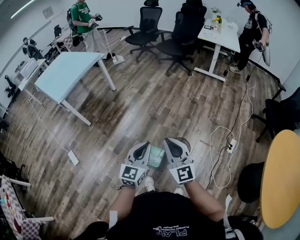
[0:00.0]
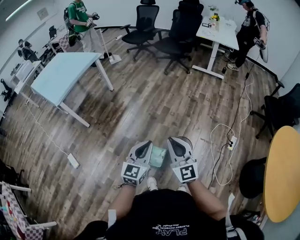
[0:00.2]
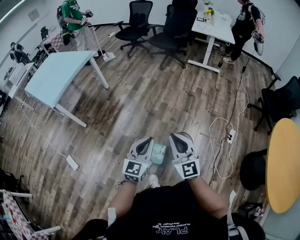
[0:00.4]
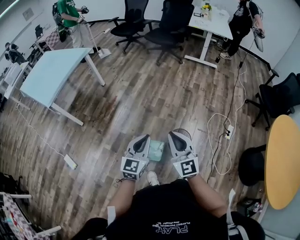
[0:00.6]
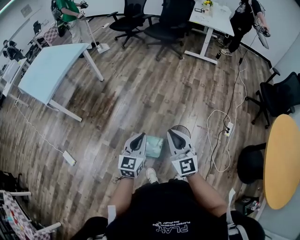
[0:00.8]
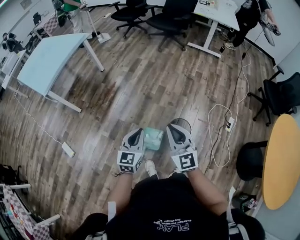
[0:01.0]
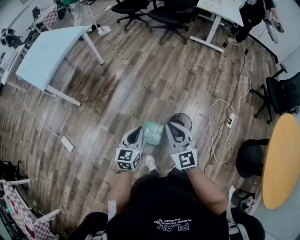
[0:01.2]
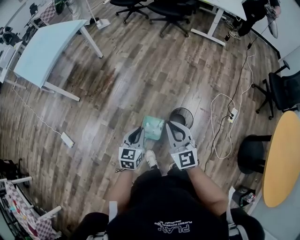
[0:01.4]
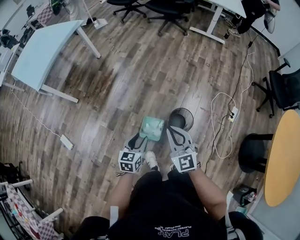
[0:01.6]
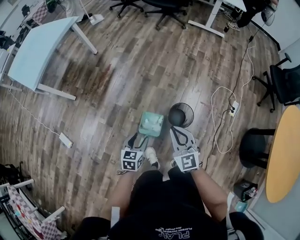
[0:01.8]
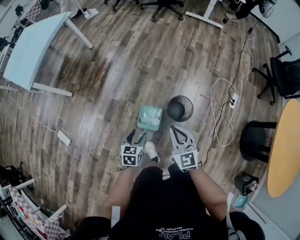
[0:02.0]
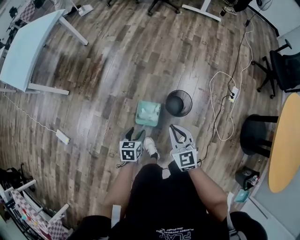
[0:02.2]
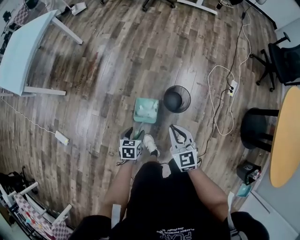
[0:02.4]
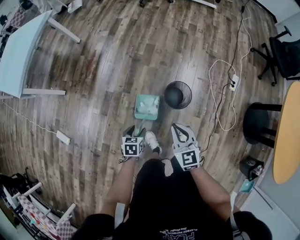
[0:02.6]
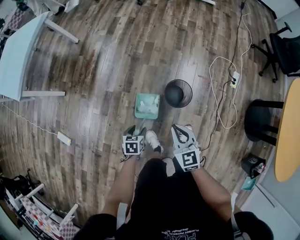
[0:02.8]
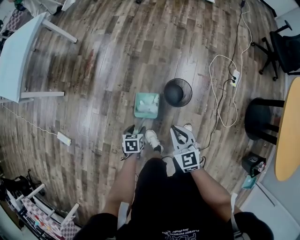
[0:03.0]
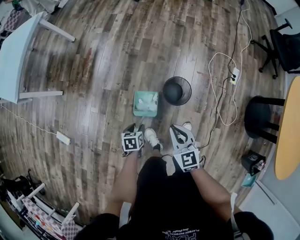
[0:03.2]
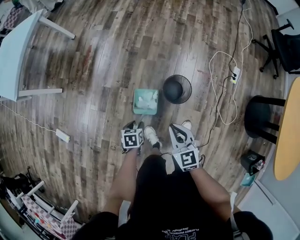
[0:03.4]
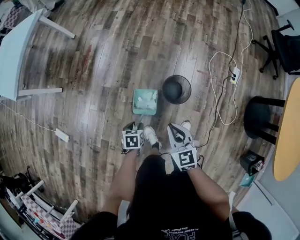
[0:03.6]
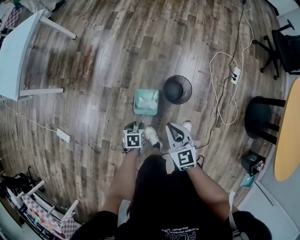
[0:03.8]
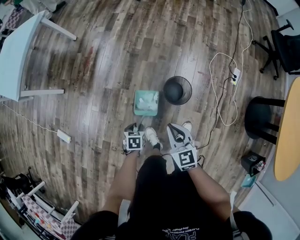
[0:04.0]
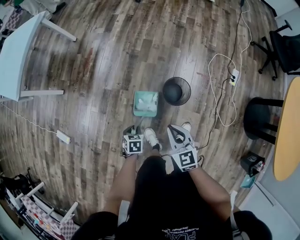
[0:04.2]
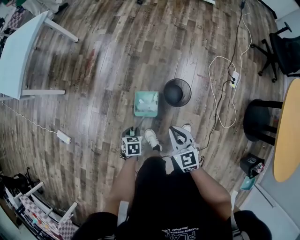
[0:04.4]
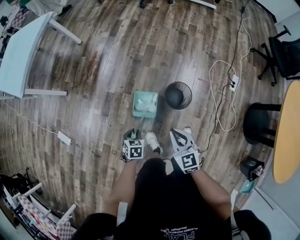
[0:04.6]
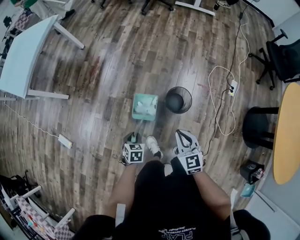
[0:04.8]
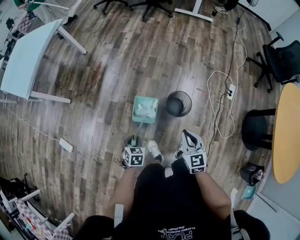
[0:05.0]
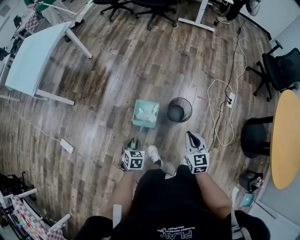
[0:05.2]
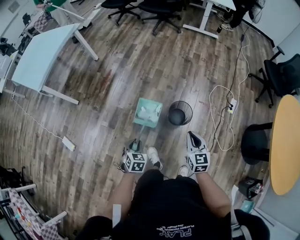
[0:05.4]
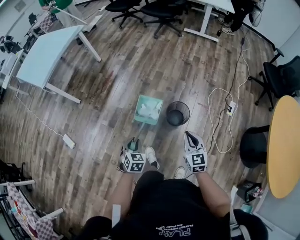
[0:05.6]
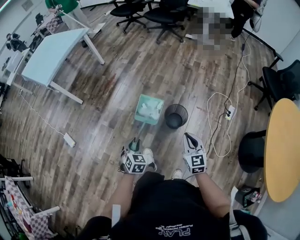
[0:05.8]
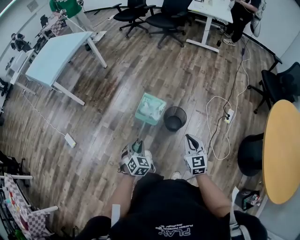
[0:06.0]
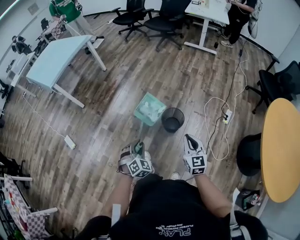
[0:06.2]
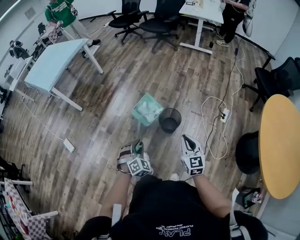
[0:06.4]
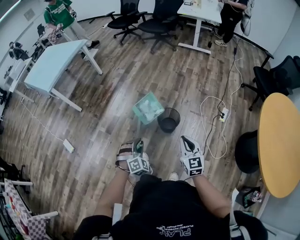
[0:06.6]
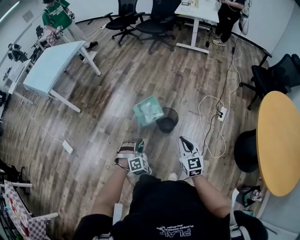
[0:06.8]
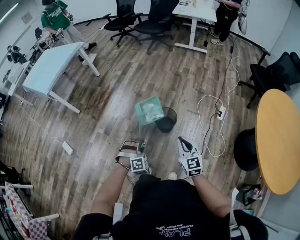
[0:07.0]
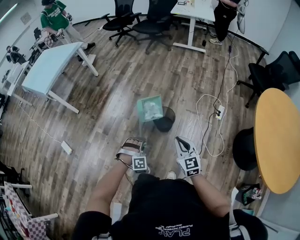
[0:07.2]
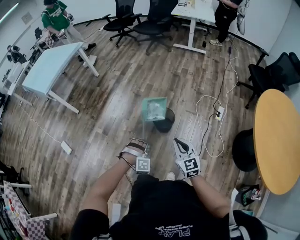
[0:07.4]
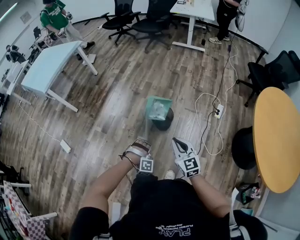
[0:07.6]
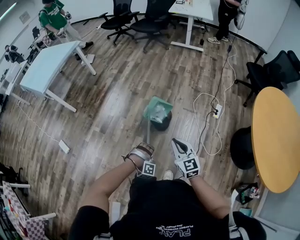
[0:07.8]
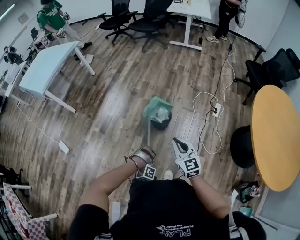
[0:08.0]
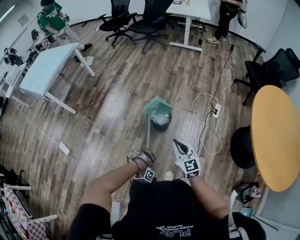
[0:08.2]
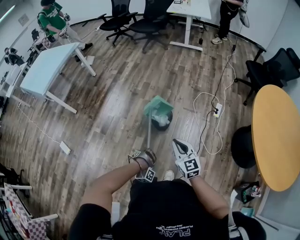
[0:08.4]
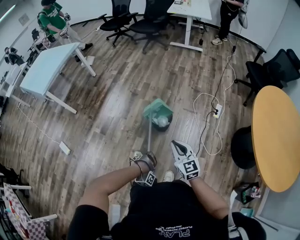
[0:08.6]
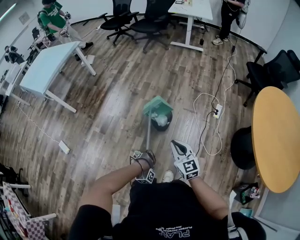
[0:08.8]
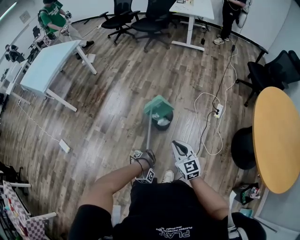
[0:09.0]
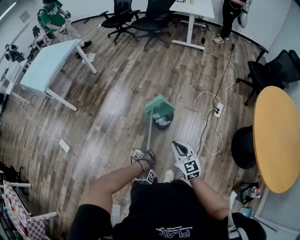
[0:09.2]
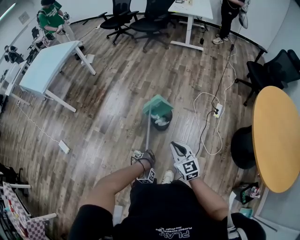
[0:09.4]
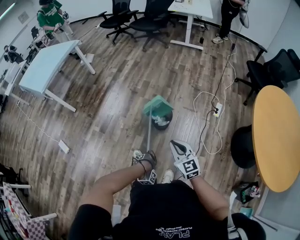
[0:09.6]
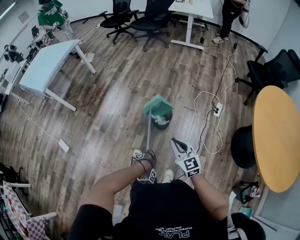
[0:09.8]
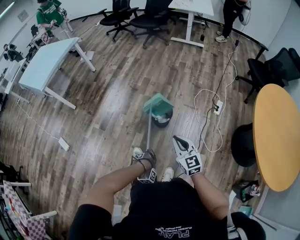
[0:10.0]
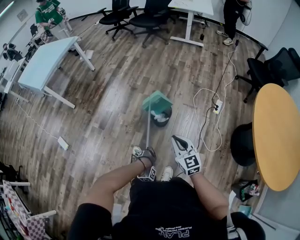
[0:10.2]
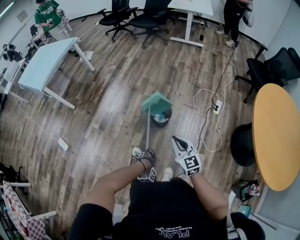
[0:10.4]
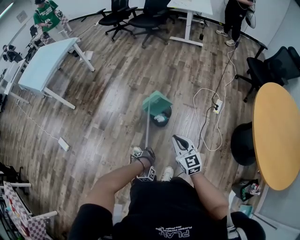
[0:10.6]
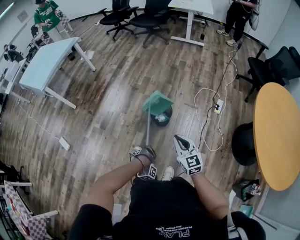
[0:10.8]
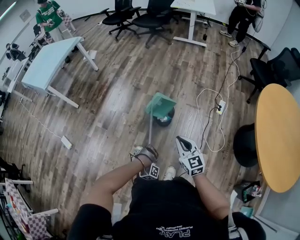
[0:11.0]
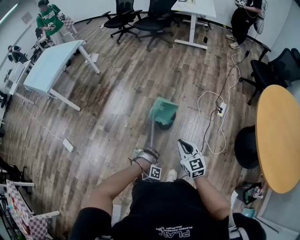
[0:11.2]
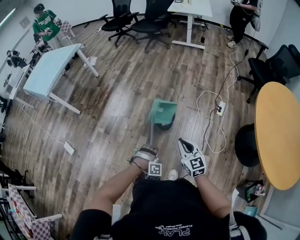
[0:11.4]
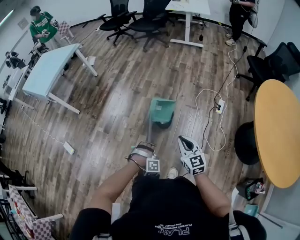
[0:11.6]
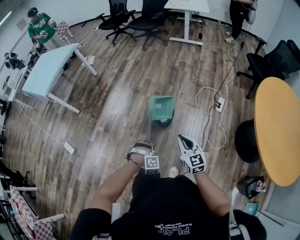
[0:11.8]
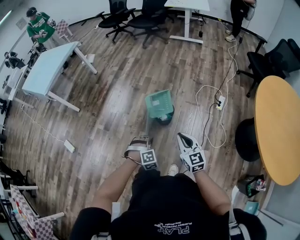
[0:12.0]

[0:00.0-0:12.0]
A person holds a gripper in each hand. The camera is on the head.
0:00.0 to 0:01.6: The left gripper heads downward and to the left, covering roughly 25 cm, turns by approximately 30 degrees, and opens up; the right gripper goes some 15 cm downward and forward, and turns by about 20 degrees.
0:01.6 to 0:03.0: The two grippers go approximately 20 cm downward. The left gripper points its fingers approximately 30 degrees further downward. Meanwhile the right gripper rotates approximately 30 degrees.
0:03.0 to 0:04.4: The left gripper closes.
0:04.4 to 0:06.0: The left gripper travels upward and backward by about 25 cm, and turns by about 40 degrees; the right gripper shifts about 20 cm backward, to the right and upward.
0:06.0 to 0:07.6: The right gripper travels backward by roughly 10 cm, while the left gripper travels to the right, backward and downward by about 15 cm, and rolls clockwise, seen from behind, by approximately 80 degrees.
0:07.6 to 0:09.0: The left gripper shifts roughly 10 cm downward and backward, and twists approximately 40 degrees clockwise, seen from behind.
0:09.0 to 0:10.4: The grippers stay close to where they were, moving slightly.
0:10.4 to 0:12.0: The left gripper moves upward, to the right and forward, roughly 15 cm, rolls counterclockwise, seen from behind, by roughly 70 degrees, and closes up.

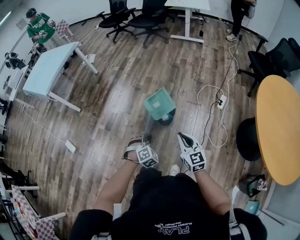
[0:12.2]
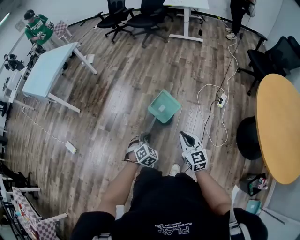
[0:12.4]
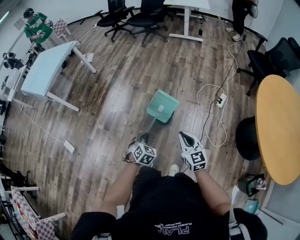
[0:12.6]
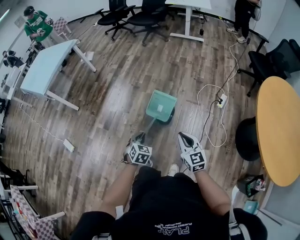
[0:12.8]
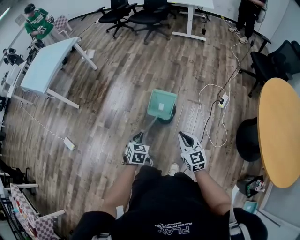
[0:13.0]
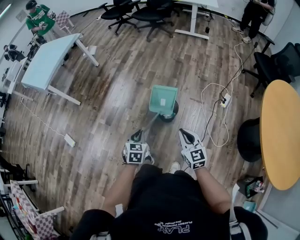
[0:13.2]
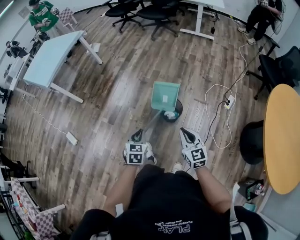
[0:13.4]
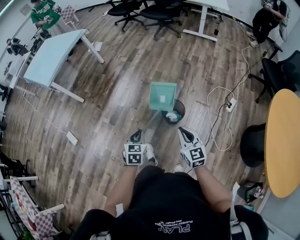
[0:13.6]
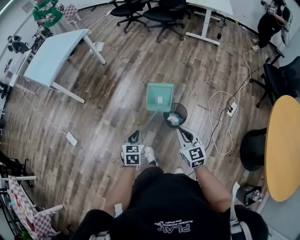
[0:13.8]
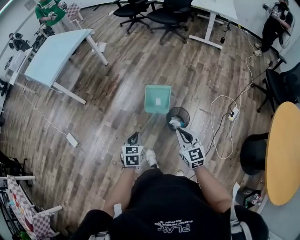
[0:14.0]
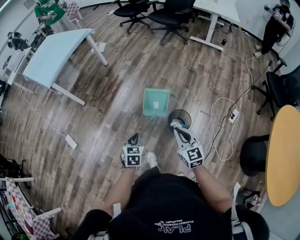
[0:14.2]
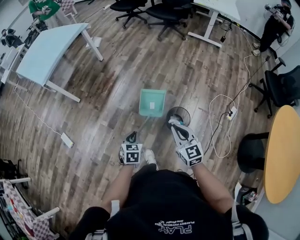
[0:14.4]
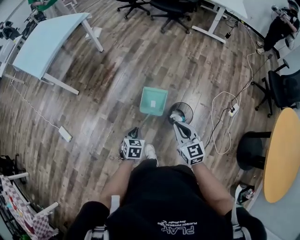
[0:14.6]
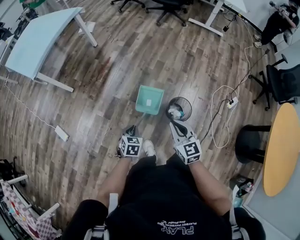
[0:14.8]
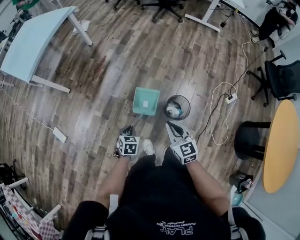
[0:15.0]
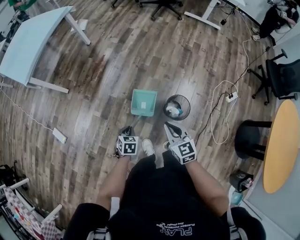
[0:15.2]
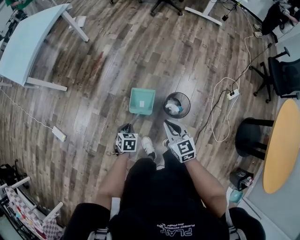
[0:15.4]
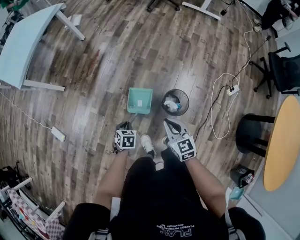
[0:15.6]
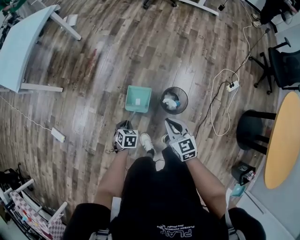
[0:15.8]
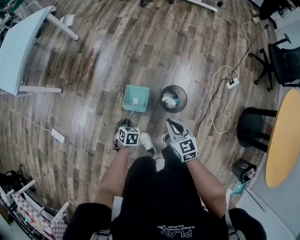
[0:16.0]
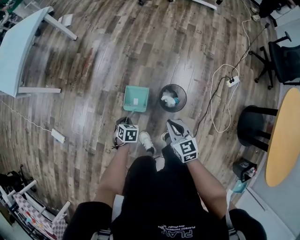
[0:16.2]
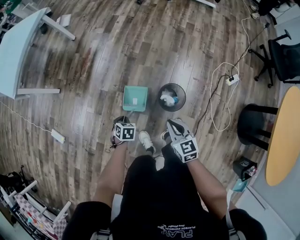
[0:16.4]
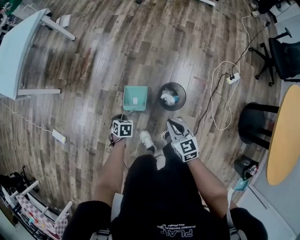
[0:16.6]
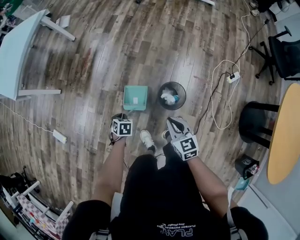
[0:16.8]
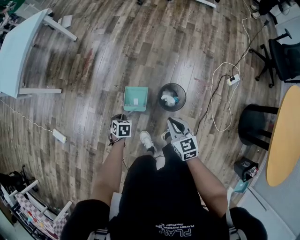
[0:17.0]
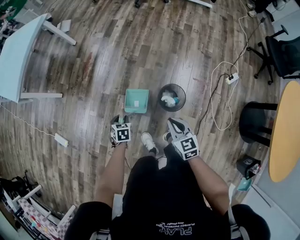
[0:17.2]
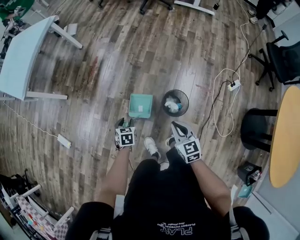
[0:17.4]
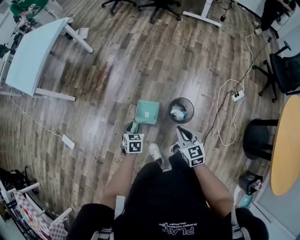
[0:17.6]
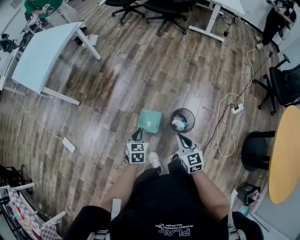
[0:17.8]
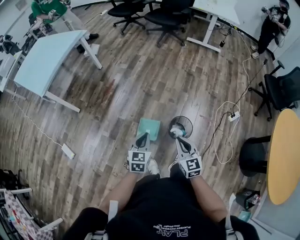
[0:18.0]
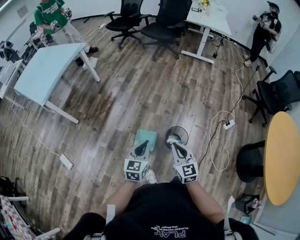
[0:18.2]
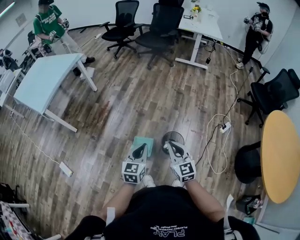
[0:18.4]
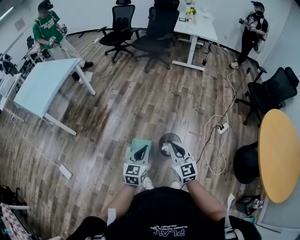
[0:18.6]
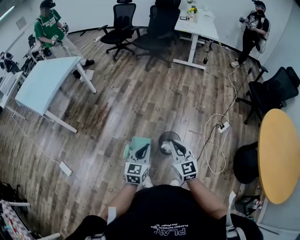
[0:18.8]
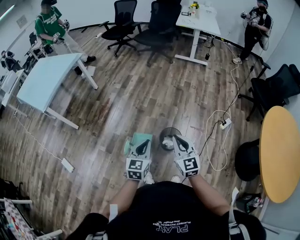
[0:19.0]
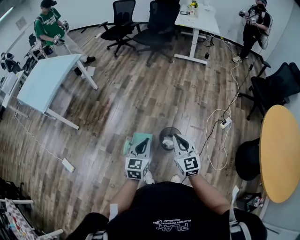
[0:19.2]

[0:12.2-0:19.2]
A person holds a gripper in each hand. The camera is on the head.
0:12.2 to 0:13.6: The right gripper is displaced forward and to the left by some 10 cm. The left gripper travels to the left, forward and upward by approximately 15 cm, and rotates around the line of its fingers by roughly 60 degrees, counterclockwise from behind.
0:13.6 to 0:15.0: The right gripper heads forward and to the left, covering approximately 25 cm. The left gripper moves to the left, downward and forward, about 25 cm.
0:15.0 to 0:16.4: The left gripper heads downward, forward and to the right, covering some 15 cm, while the right gripper is displaced to the right and downward by some 15 cm.
0:16.4 to 0:17.8: The right gripper is displaced upward by some 5 cm. Meanwhile the left gripper shifts about 20 cm upward, turns by some 30 degrees, and opens, then closes again.
0:17.8 to 0:19.2: The two grippers go roughly 20 cm upward and to the right. The left gripper changes its angle by approximately 30 degrees.
